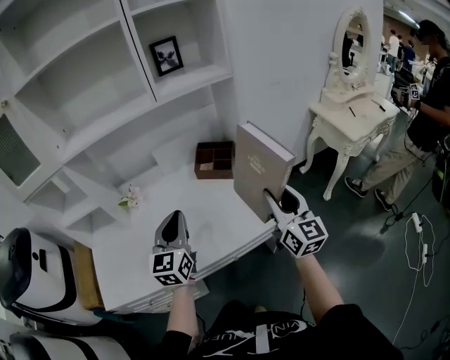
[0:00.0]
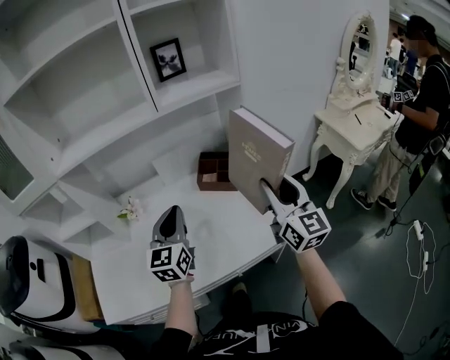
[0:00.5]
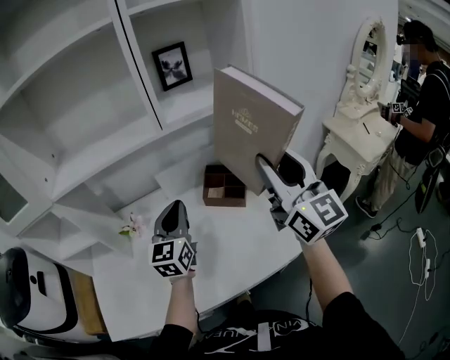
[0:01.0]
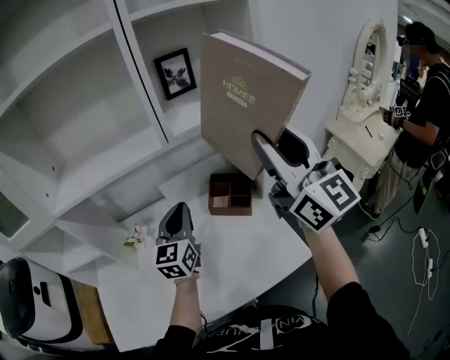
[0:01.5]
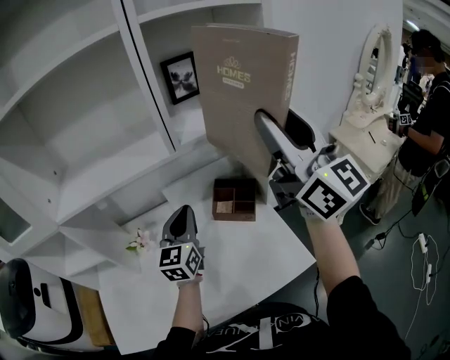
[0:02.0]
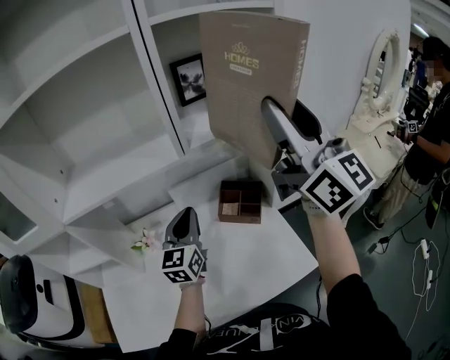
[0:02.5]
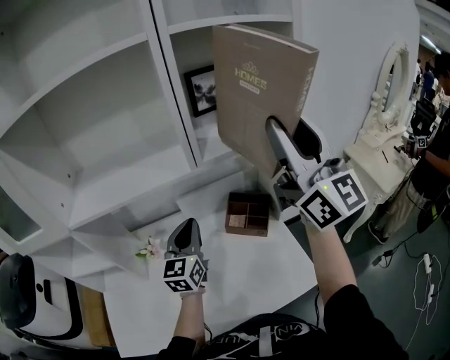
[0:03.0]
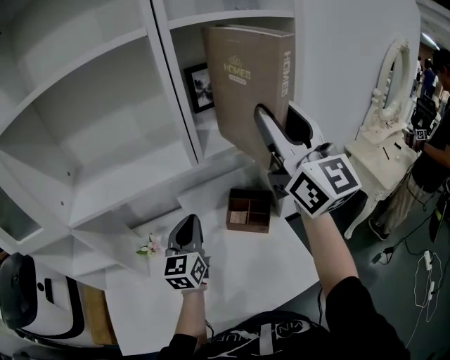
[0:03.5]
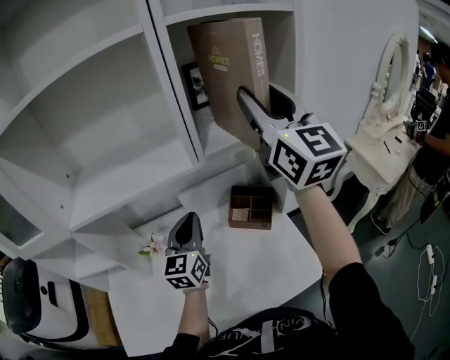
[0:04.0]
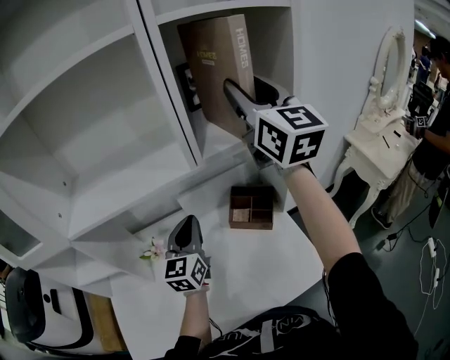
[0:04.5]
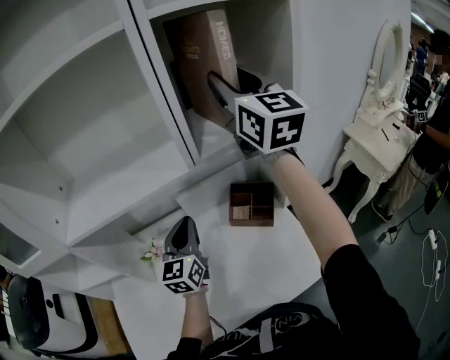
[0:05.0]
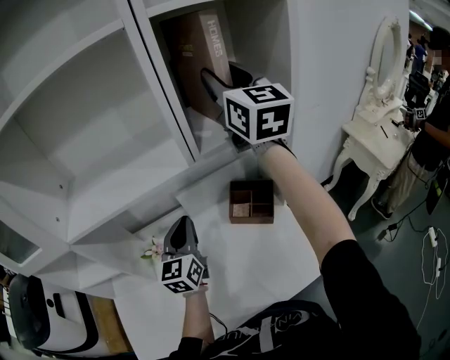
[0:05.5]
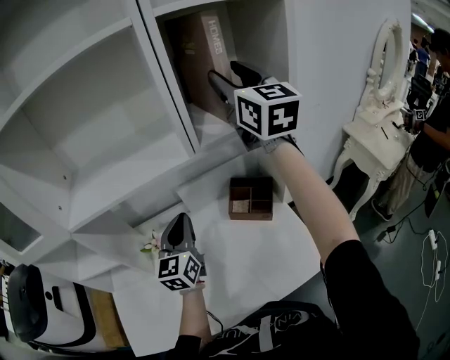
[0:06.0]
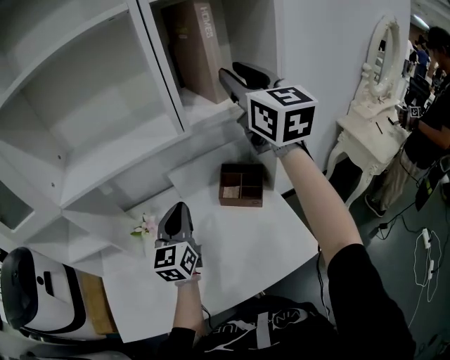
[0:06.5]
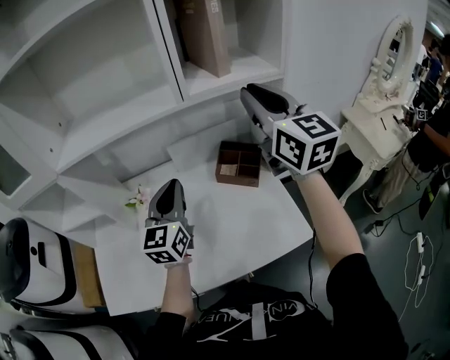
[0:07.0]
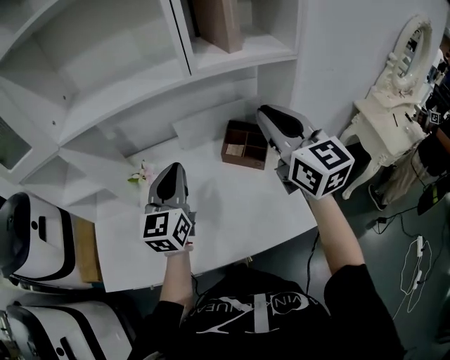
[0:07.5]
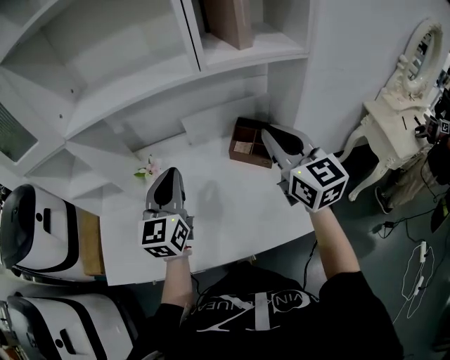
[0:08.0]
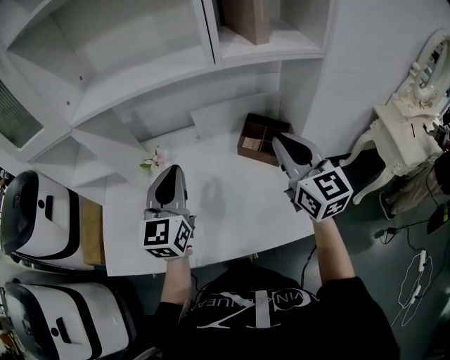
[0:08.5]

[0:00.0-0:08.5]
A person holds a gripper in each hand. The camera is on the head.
0:00.0 to 0:02.0: The left gripper is displaced forward by some 25 cm, while the right gripper is displaced upward and forward by about 40 cm, and changes its angle by approximately 20 degrees.
0:02.0 to 0:04.0: The right gripper is displaced forward by roughly 10 cm.
0:04.0 to 0:06.5: The left gripper ends up some 5 cm from where it was. The right gripper reaches about 10 cm forward, then returns.
0:06.5 to 0:08.5: The right gripper shifts about 25 cm downward and backward, and closes its fingers; the left gripper moves backward, roughly 5 cm.

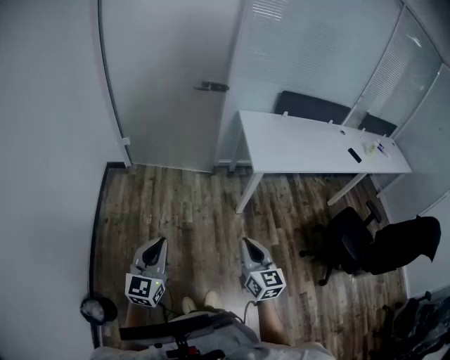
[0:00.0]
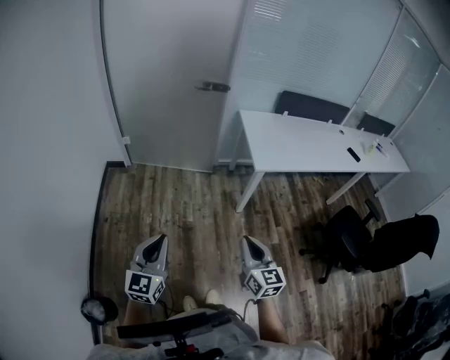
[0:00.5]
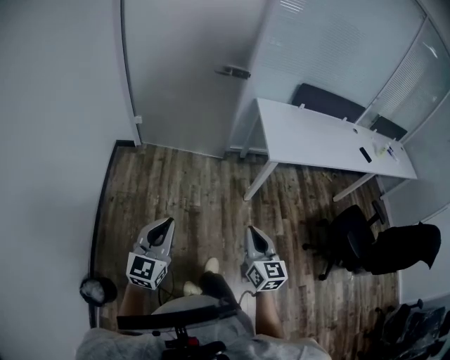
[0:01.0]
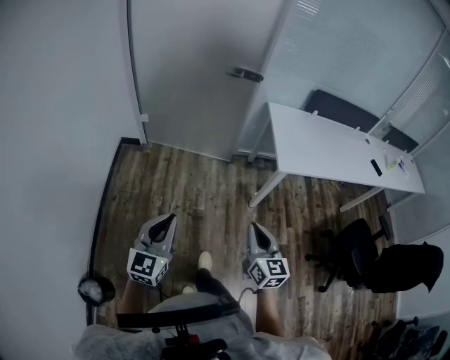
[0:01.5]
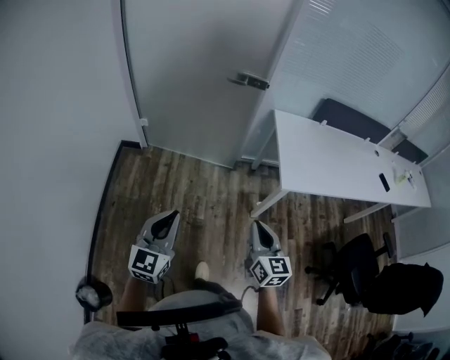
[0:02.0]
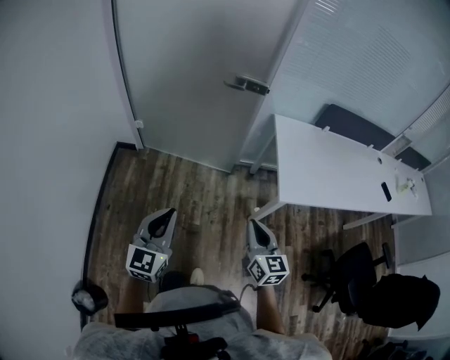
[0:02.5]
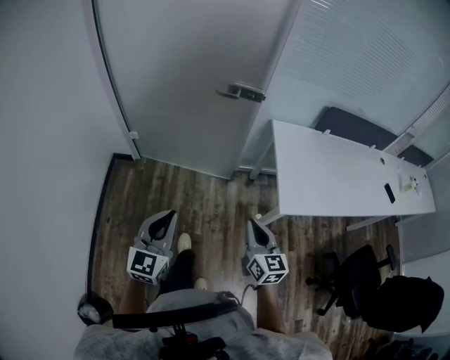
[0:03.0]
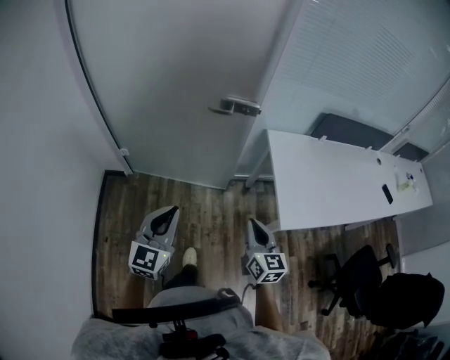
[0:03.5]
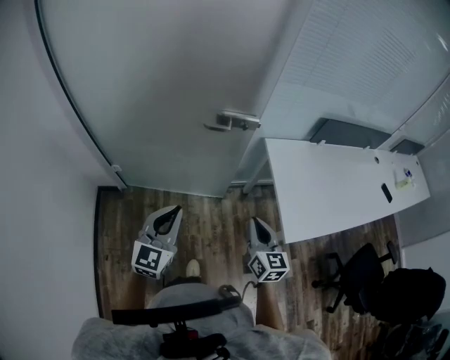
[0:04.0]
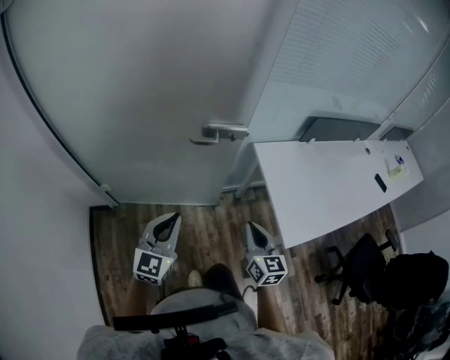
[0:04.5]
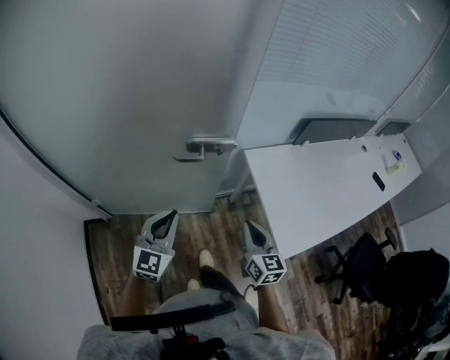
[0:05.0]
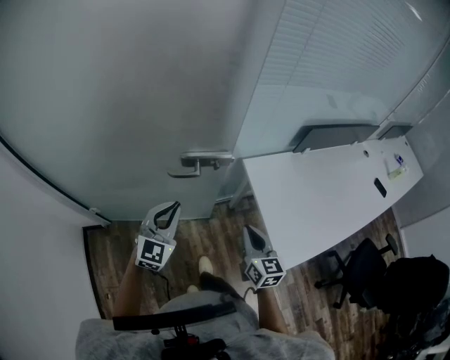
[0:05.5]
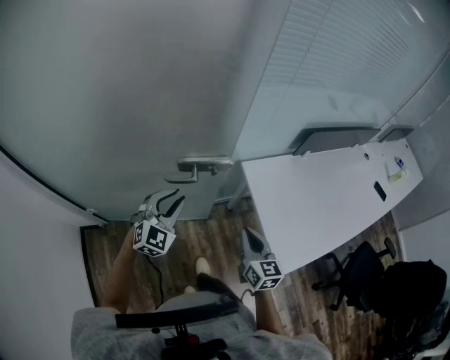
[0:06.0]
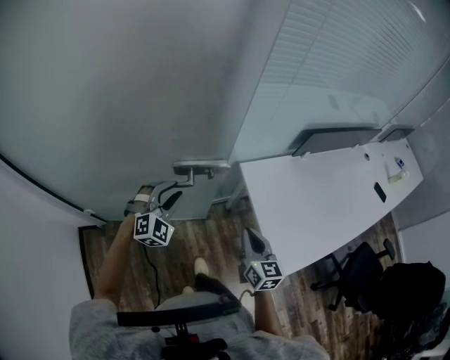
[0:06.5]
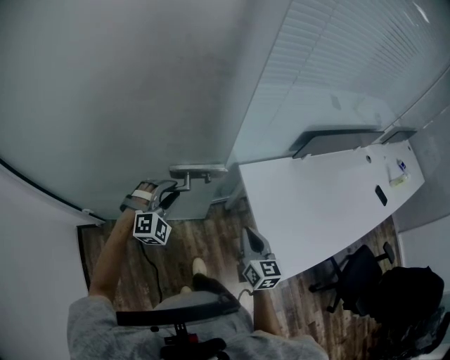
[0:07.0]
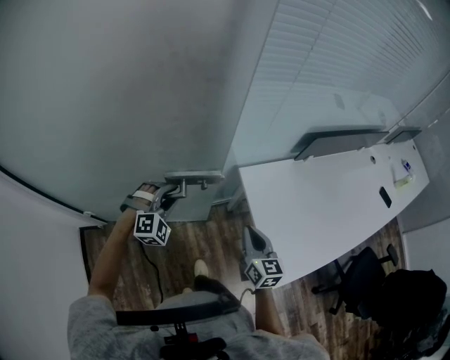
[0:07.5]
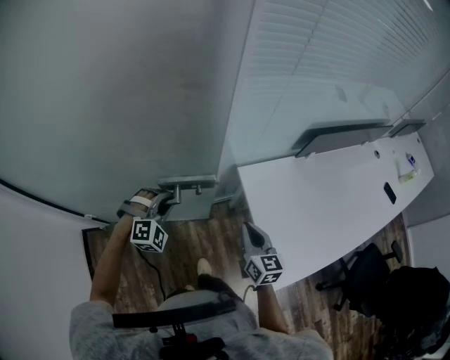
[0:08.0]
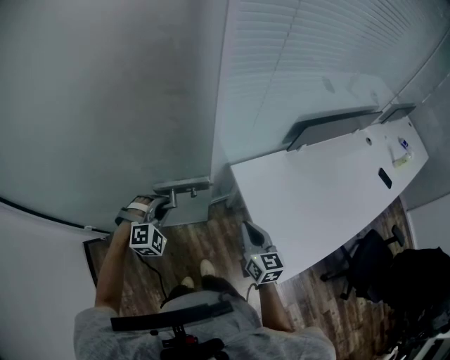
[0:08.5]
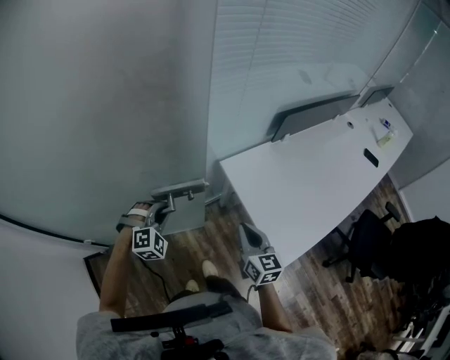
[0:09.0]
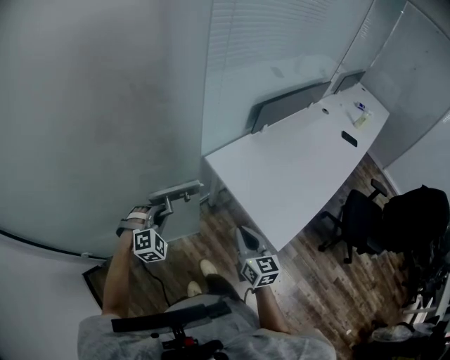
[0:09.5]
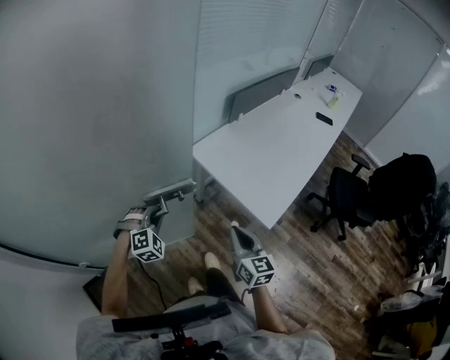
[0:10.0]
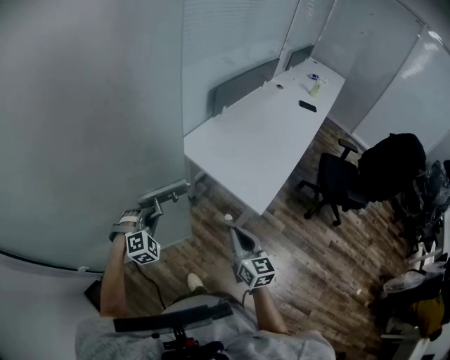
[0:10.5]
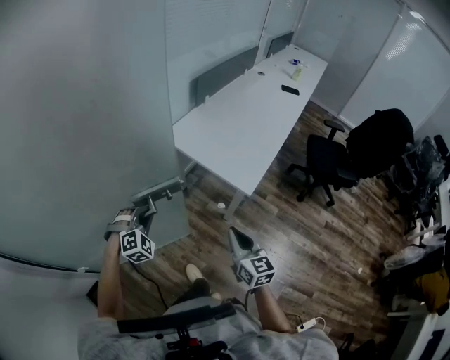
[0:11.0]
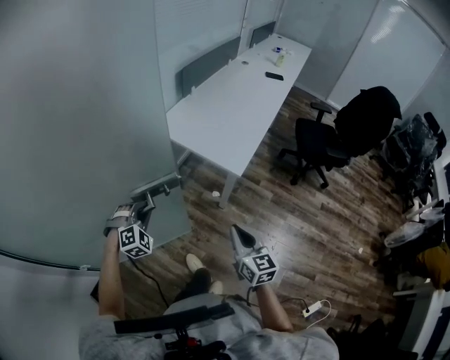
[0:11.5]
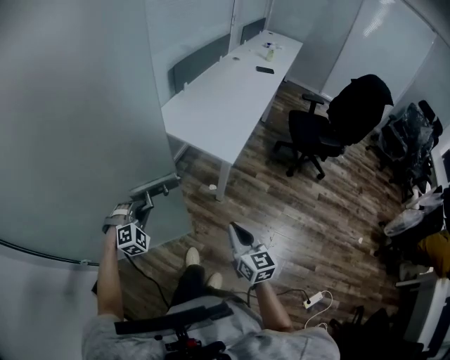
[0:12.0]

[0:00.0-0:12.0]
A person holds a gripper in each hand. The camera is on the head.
0:00.0 to 0:02.0: The two grippers go roughly 20 cm forward.
0:02.0 to 0:04.0: Both grippers move forward, approximately 35 cm.
0:04.0 to 0:06.0: The left gripper travels forward by some 30 cm, rotates some 30 degrees, and opens its fingers; the right gripper travels forward by some 15 cm.
0:06.0 to 0:08.0: The left gripper goes roughly 10 cm downward and forward, and turns by some 40 degrees; the right gripper goes about 10 cm forward.
0:08.0 to 0:10.0: The right gripper travels backward by some 20 cm, and turns by about 20 degrees, while the left gripper shifts approximately 10 cm backward.
0:10.0 to 0:12.0: The grippers both shift backward by some 25 cm.

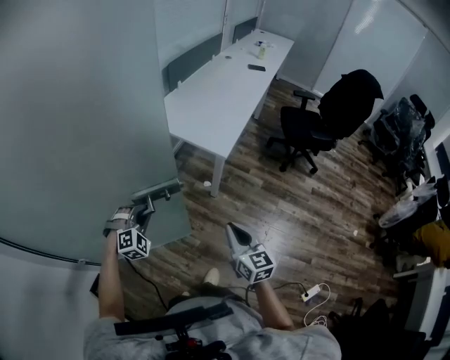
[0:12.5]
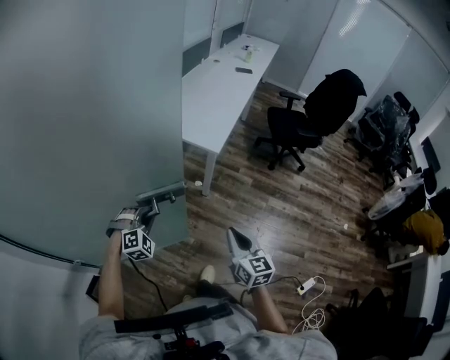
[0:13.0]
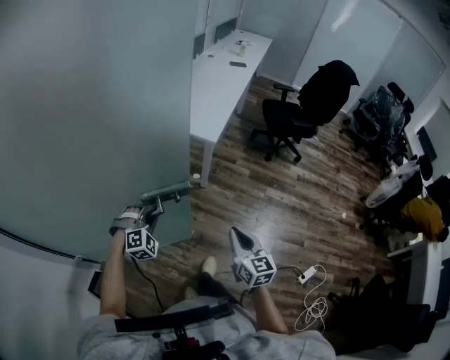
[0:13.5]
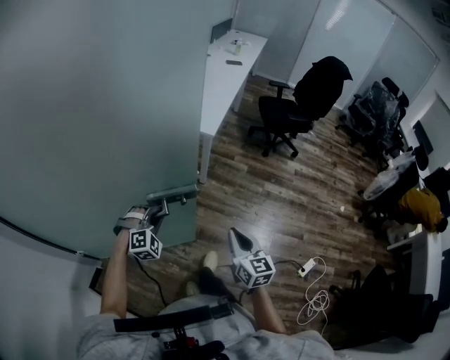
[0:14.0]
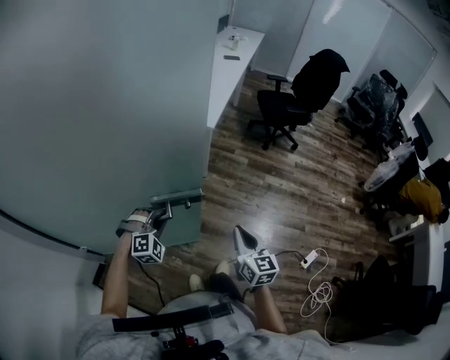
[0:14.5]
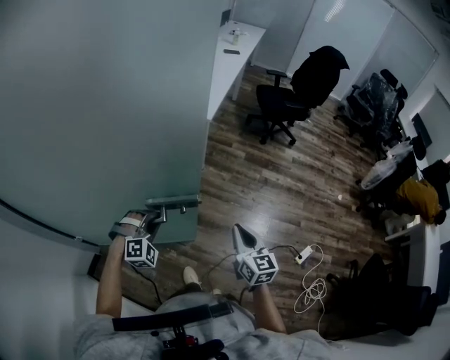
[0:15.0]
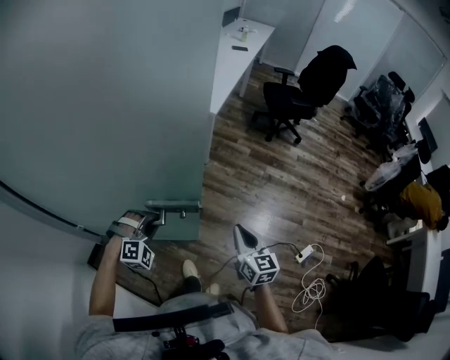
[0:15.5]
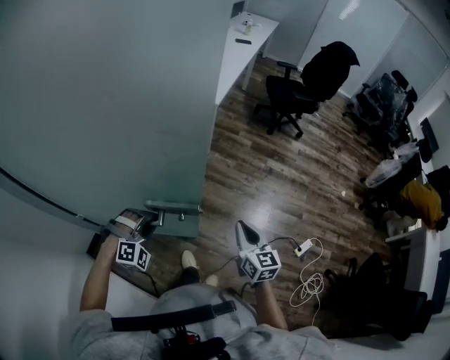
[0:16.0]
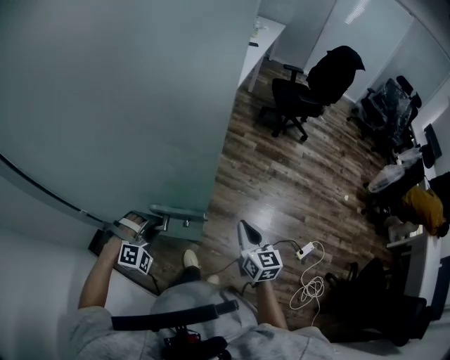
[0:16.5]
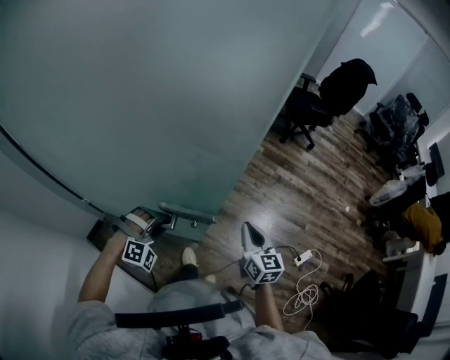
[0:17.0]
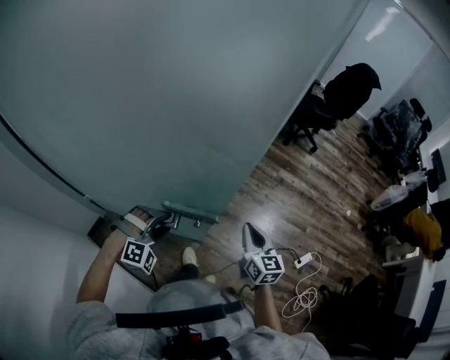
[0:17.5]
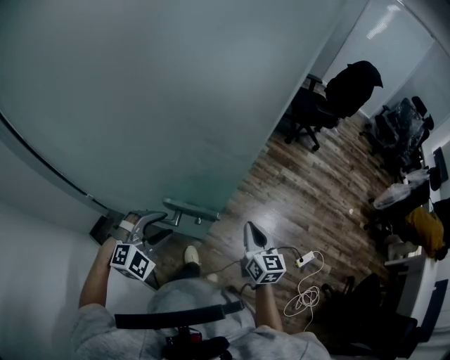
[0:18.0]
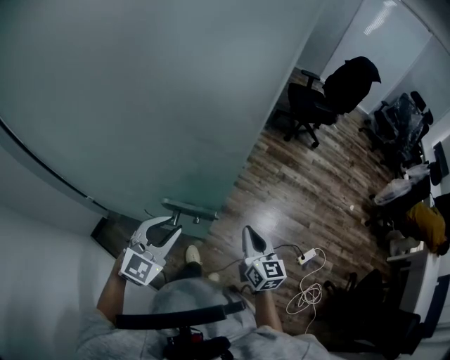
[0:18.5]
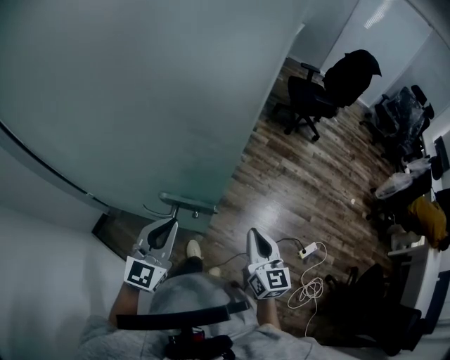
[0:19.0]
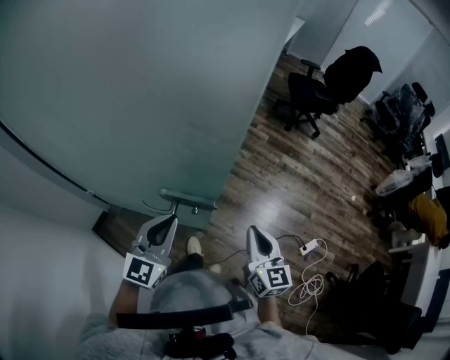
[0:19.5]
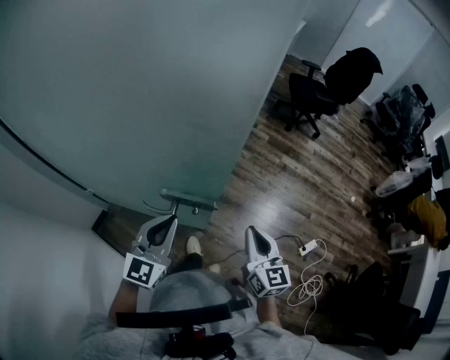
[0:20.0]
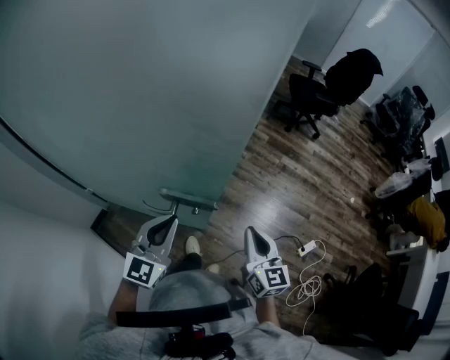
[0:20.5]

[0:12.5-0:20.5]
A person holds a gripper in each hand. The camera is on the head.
0:12.5 to 0:14.5: Both grippers move backward, approximately 20 cm.
0:14.5 to 0:16.5: The right gripper shifts roughly 10 cm backward; the left gripper travels backward by some 15 cm.
0:16.5 to 0:18.5: The left gripper goes roughly 15 cm upward, twists about 50 degrees counterclockwise, seen from behind, and opens, then closes once more.
0:18.5 to 0:20.5: The left gripper swivels some 20 degrees, and closes up.
